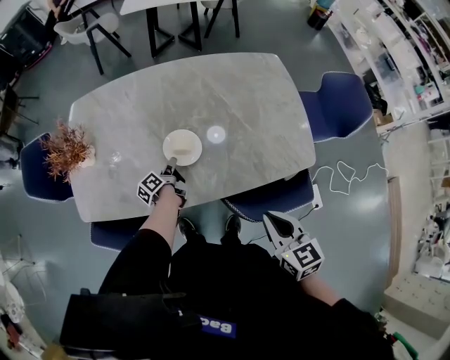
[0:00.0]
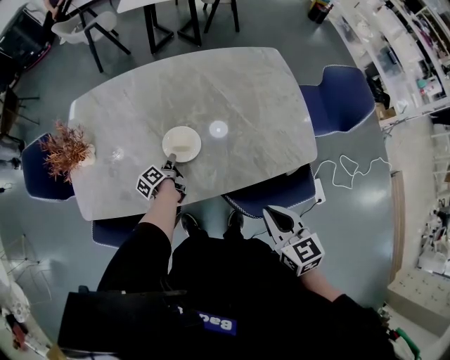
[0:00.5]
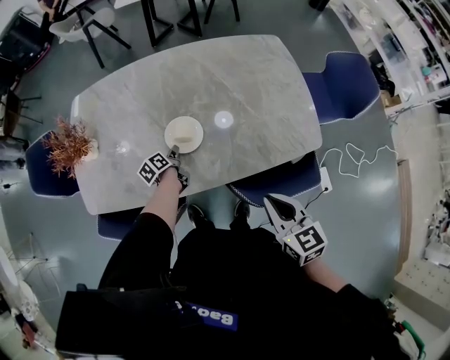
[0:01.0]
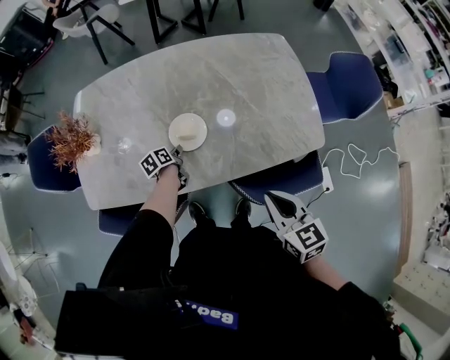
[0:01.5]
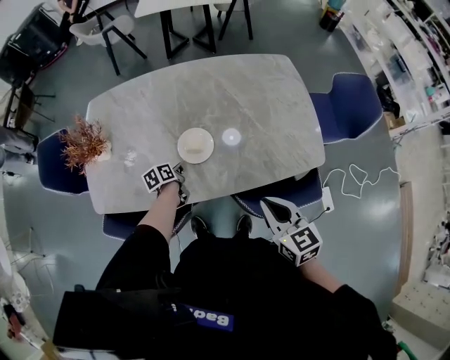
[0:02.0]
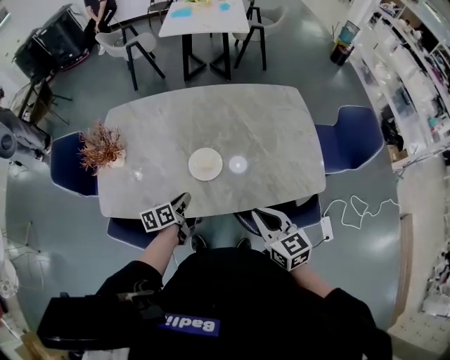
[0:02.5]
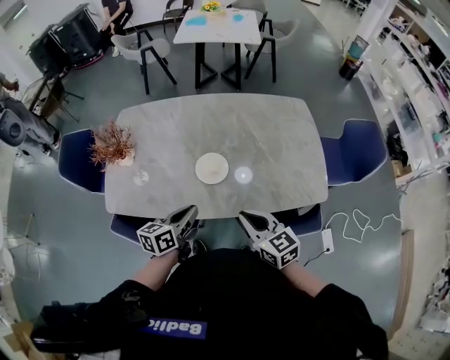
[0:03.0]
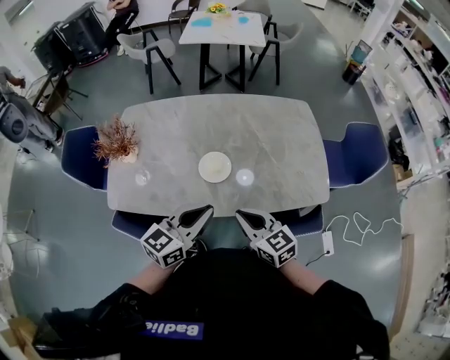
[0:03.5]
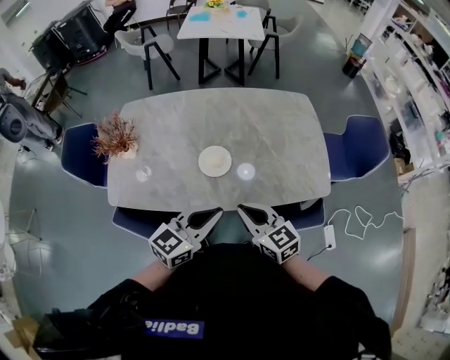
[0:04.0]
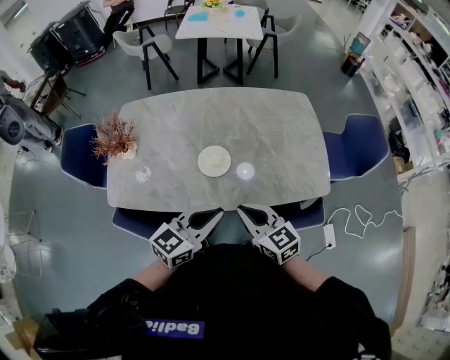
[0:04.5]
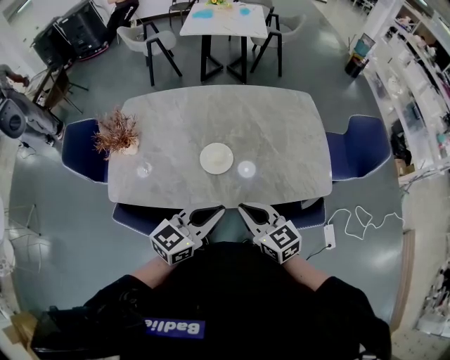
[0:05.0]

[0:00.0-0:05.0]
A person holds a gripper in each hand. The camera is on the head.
0:00.0 to 0:02.5: The right gripper goes some 5 cm to the left, while the left gripper moves upward and backward, some 15 cm, and turns by roughly 40 degrees.
0:02.5 to 0:05.0: The right gripper moves to the left, approximately 5 cm. The left gripper shifts about 25 cm upward, to the right and backward, and rotates around the line of its fingers by roughly 40 degrees, clockwise from behind.

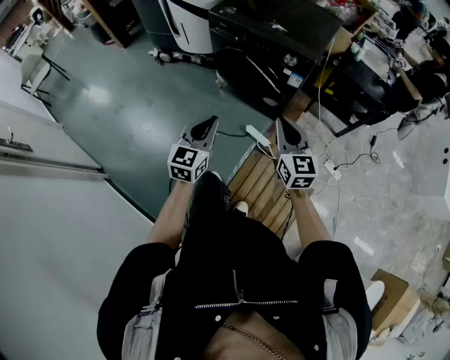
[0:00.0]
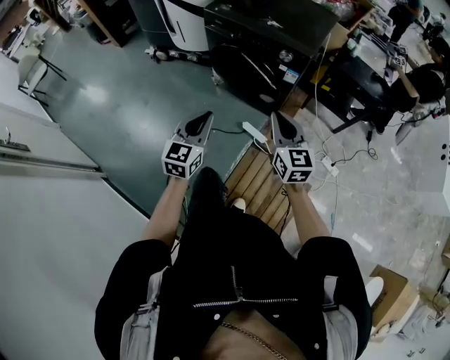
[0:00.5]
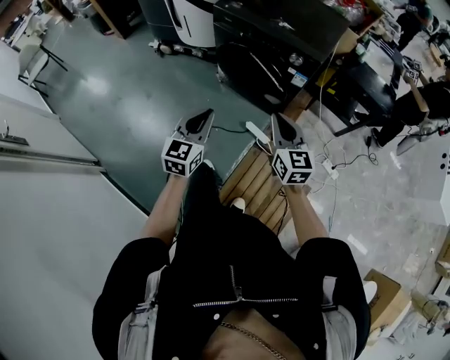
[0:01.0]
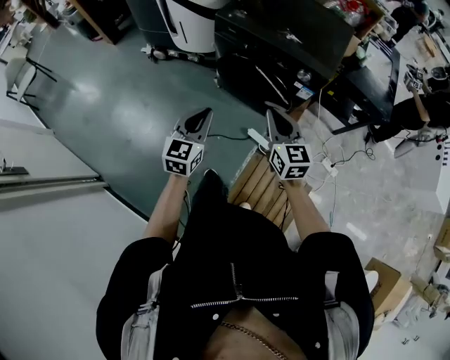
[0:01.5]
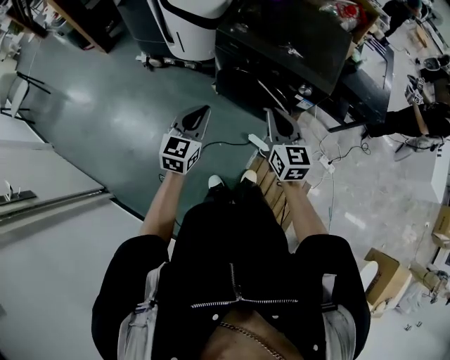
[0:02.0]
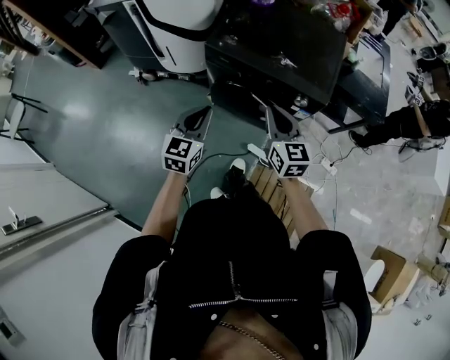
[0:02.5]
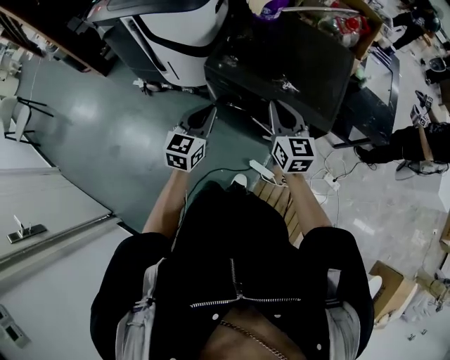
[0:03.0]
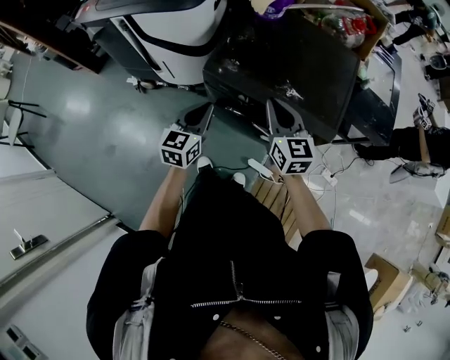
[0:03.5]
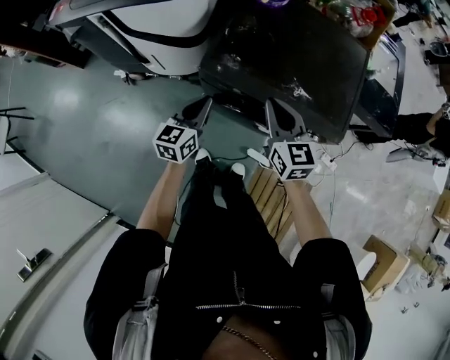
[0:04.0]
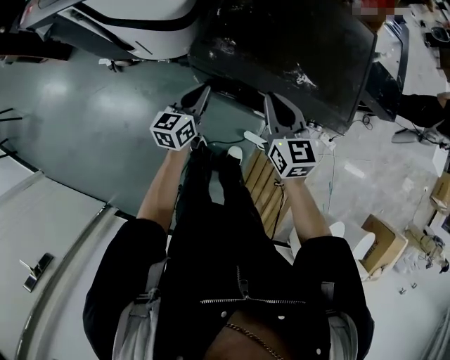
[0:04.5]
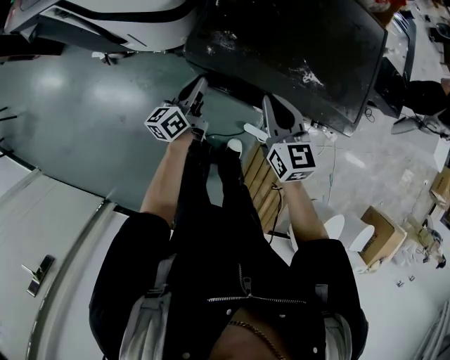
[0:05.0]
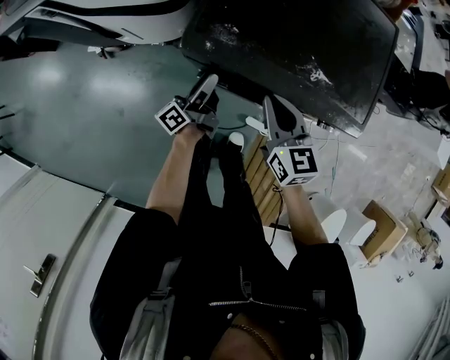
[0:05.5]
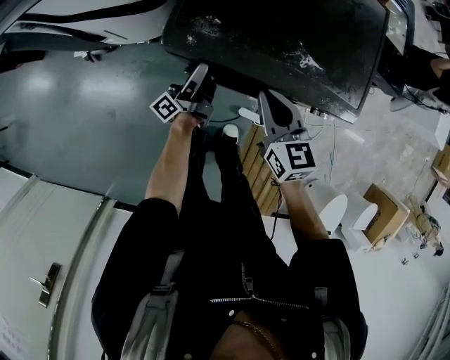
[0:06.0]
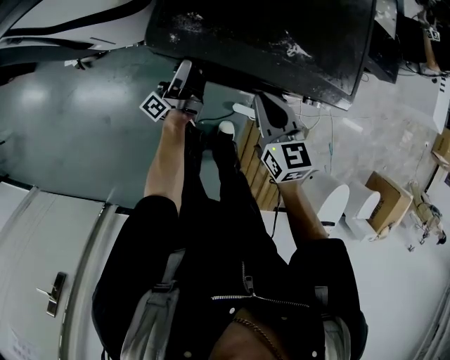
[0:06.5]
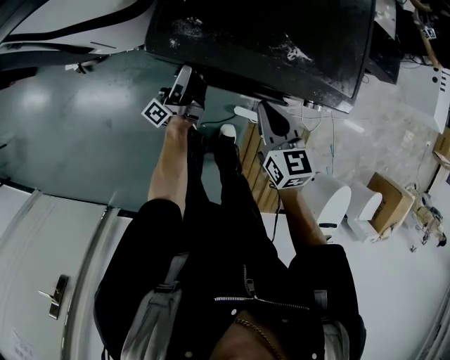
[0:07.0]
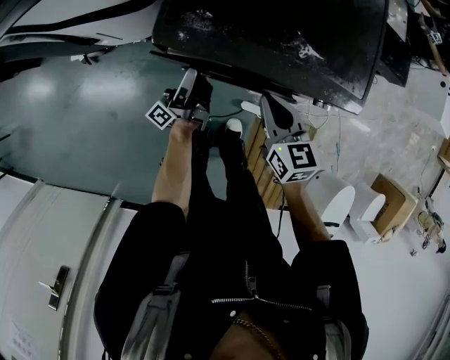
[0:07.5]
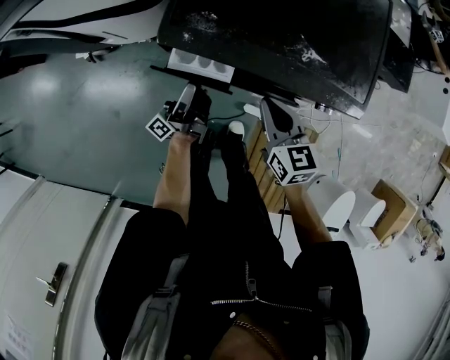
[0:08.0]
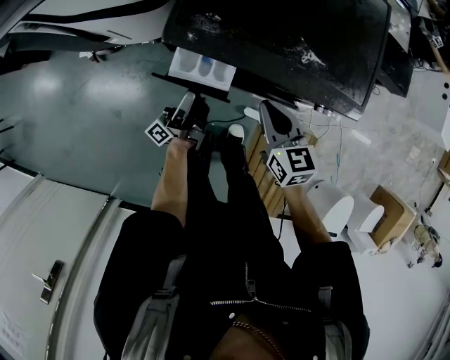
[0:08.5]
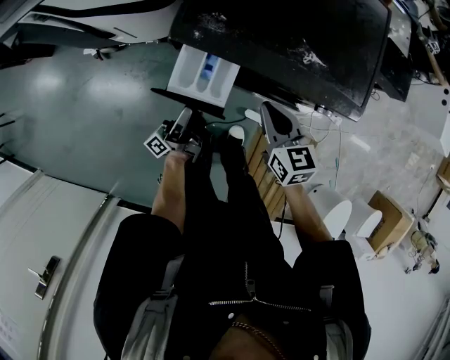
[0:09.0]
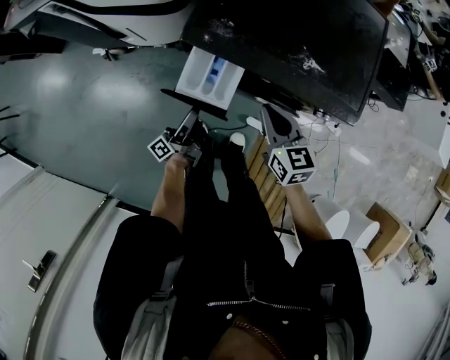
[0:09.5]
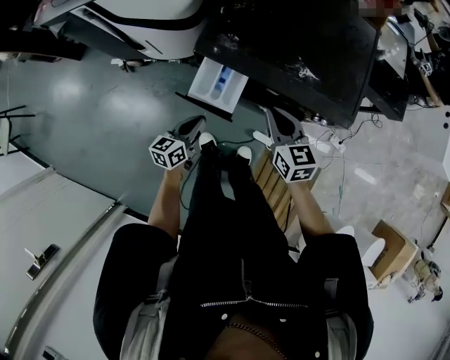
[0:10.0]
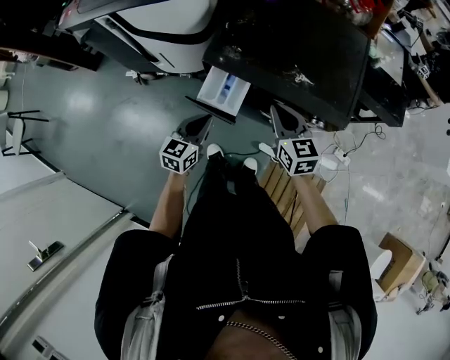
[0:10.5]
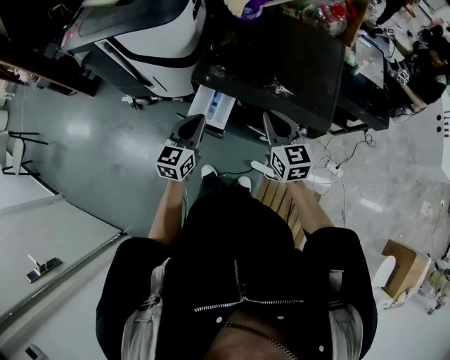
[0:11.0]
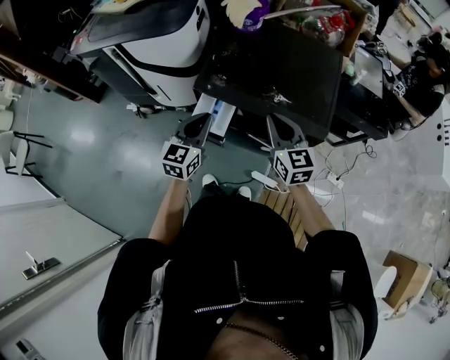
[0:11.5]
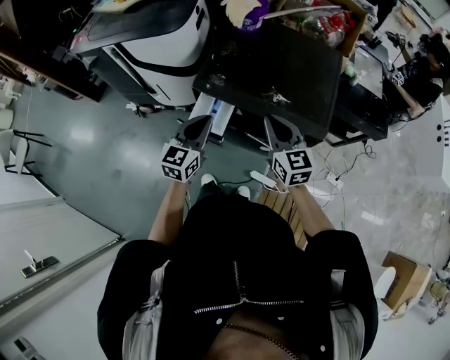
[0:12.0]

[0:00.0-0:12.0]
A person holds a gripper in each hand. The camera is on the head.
0:00.0 to 0:02.0: The left gripper heads forward and to the left, covering approximately 25 cm; the right gripper heads forward, to the left and upward, covering approximately 25 cm.
0:02.0 to 0:04.0: Both grippers travel together forward, approximately 30 cm.
0:04.0 to 0:06.0: The left gripper goes about 20 cm downward and forward, twists roughly 60 degrees counterclockwise, seen from behind, and opens. Meanwhile the right gripper heads downward, covering approximately 10 cm.
0:06.0 to 0:08.0: The left gripper moves backward, some 5 cm.
0:08.0 to 0:10.0: The left gripper travels backward by some 10 cm, tips its fingers downward by about 50 degrees, and closes up. Meanwhile the right gripper goes some 5 cm upward.
0:10.0 to 0:12.0: The right gripper is displaced upward by approximately 15 cm; the left gripper moves upward, roughly 20 cm, and turns by about 30 degrees.

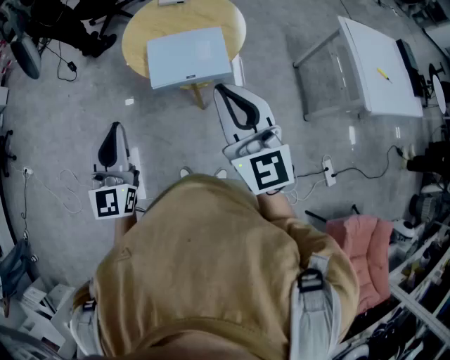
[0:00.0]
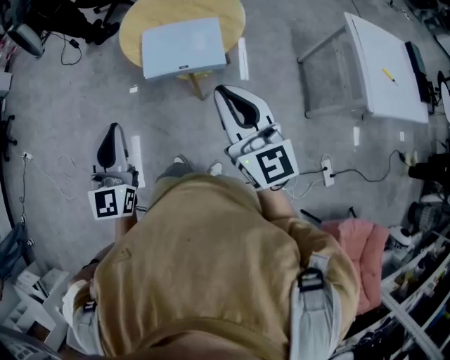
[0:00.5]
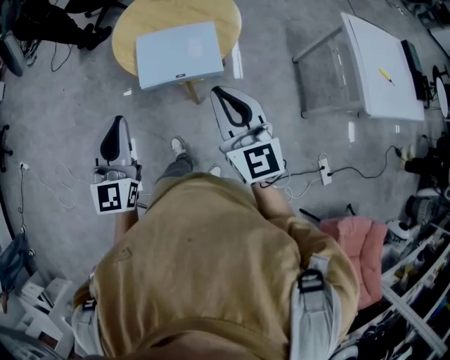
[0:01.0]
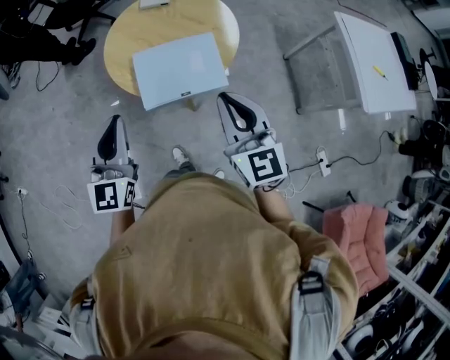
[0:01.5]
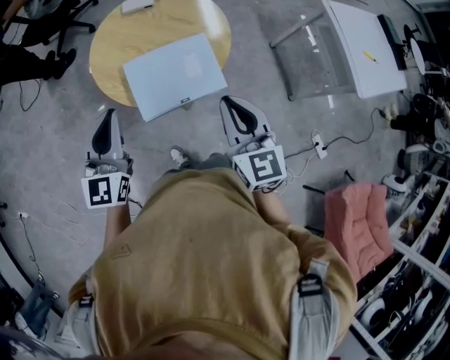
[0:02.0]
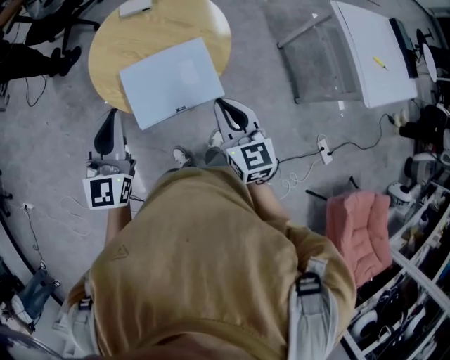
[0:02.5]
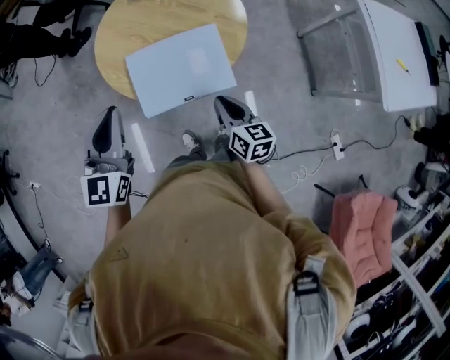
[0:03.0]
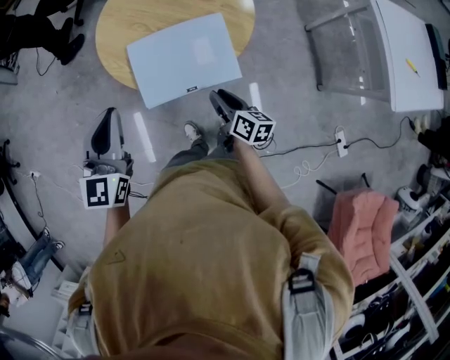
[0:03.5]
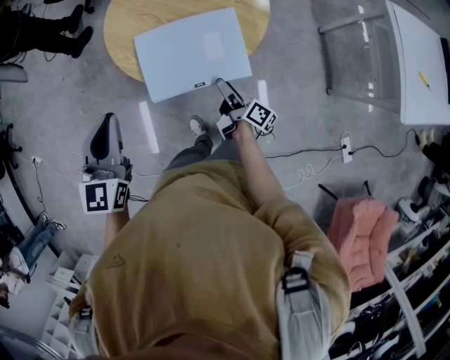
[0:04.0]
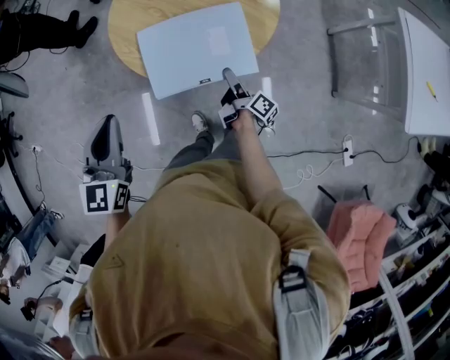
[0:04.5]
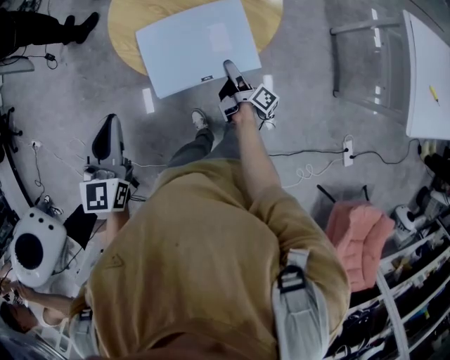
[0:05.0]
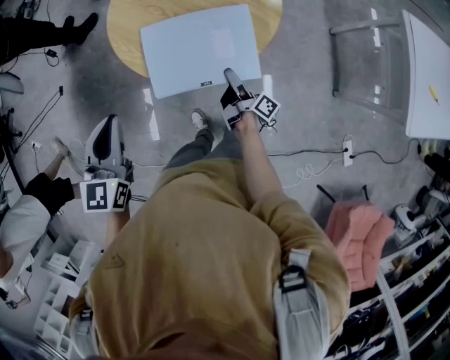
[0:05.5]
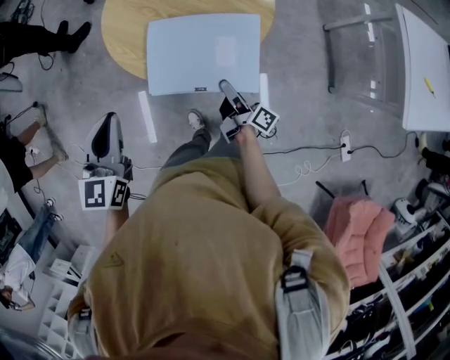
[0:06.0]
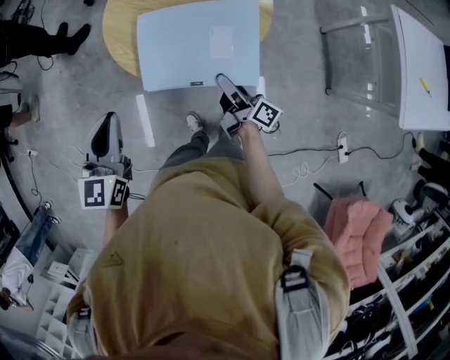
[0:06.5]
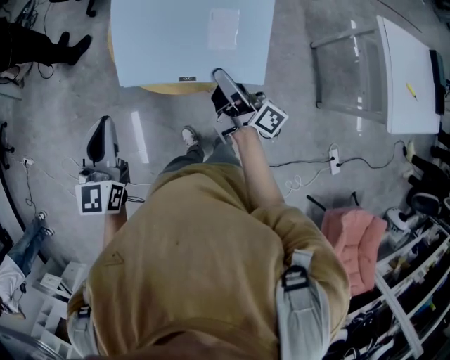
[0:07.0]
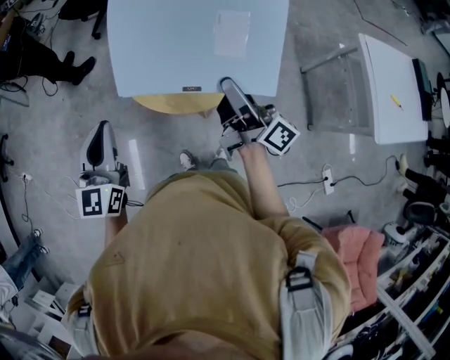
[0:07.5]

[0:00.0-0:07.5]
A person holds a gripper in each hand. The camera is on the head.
0:00.0 to 0:02.0: The right gripper shifts about 20 cm forward and downward, and changes its angle by approximately 30 degrees. Meanwhile the left gripper travels forward by approximately 20 cm.
0:02.0 to 0:04.0: The right gripper shifts roughly 30 cm downward, rotates around the line of its fingers by about 80 degrees, clockwise from behind, and opens up.
0:04.0 to 0:05.5: The grippers stay close to where they were, moving slightly.
0:05.5 to 0:07.5: The right gripper moves upward, about 30 cm, and rotates roughly 40 degrees. The left gripper travels upward by some 5 cm.

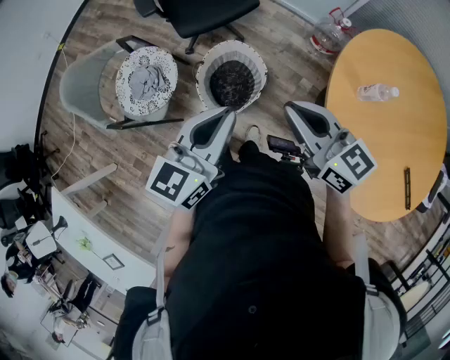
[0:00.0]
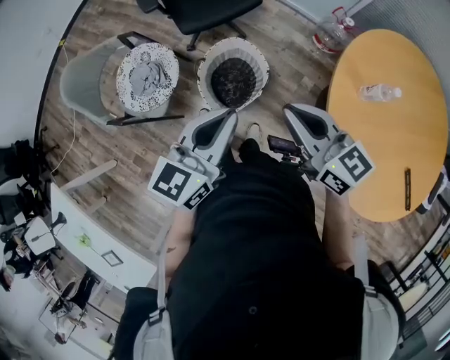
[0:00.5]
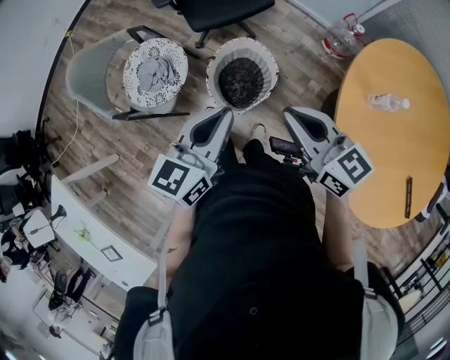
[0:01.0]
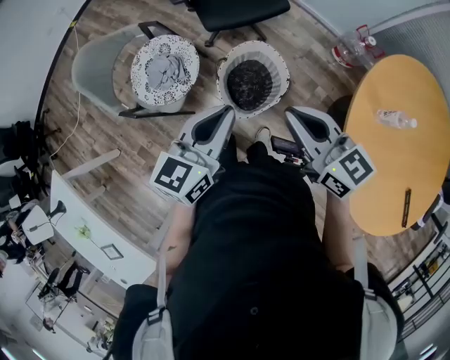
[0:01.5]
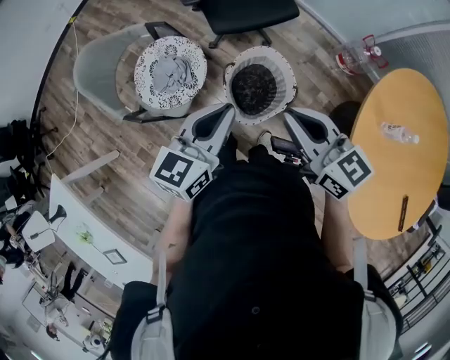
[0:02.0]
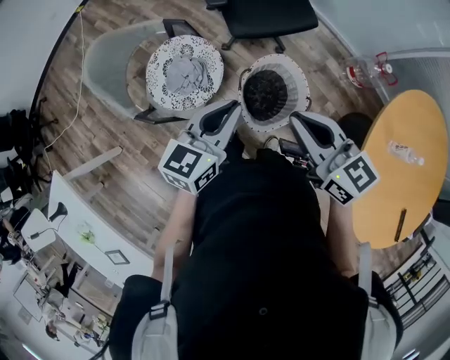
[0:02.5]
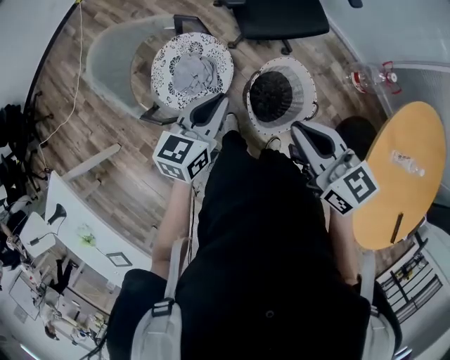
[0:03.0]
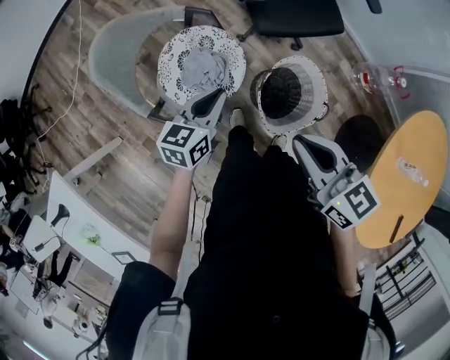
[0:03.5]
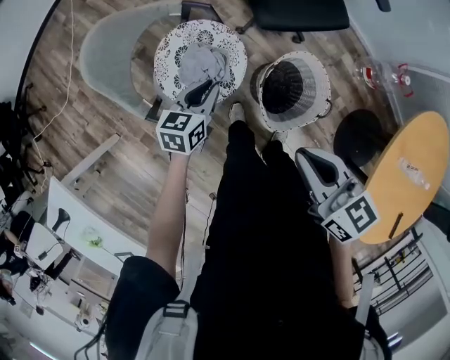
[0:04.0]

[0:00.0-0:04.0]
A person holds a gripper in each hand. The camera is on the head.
0:00.0 to 0:02.0: Both grippers move to the left and forward, roughly 15 cm.
0:02.0 to 0:04.0: The right gripper heads to the left and forward, covering some 20 cm. Meanwhile the left gripper travels to the left, downward and forward by approximately 35 cm, and swivels approximately 20 degrees.
